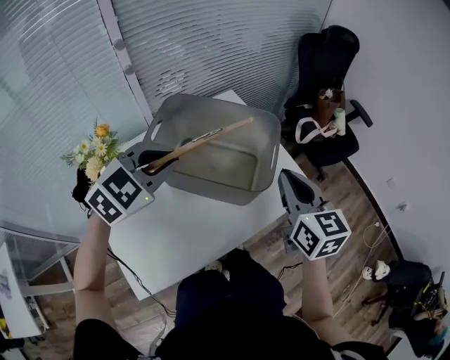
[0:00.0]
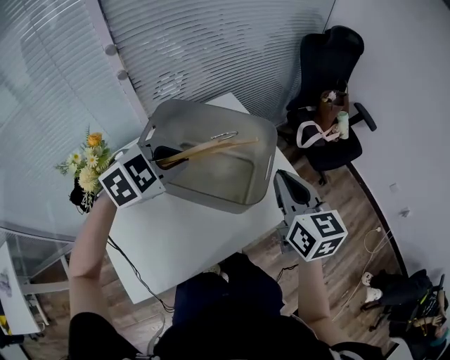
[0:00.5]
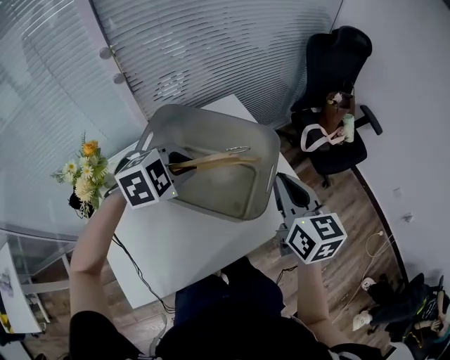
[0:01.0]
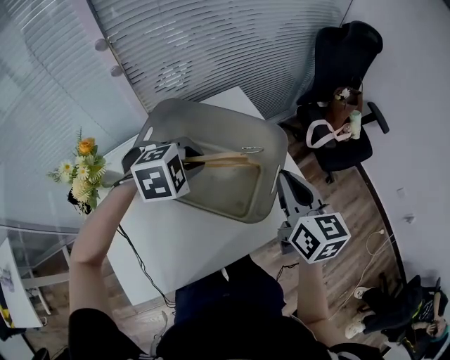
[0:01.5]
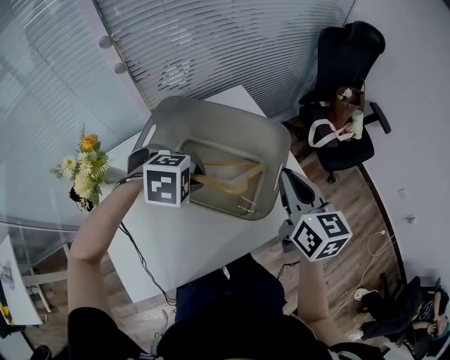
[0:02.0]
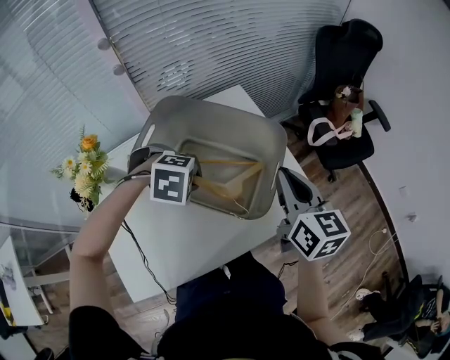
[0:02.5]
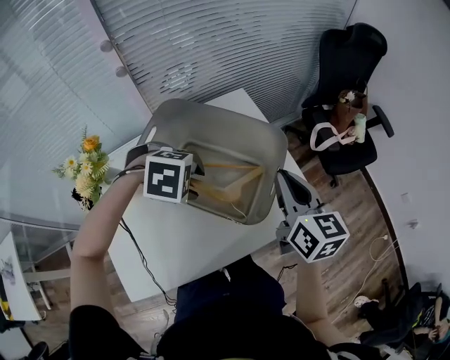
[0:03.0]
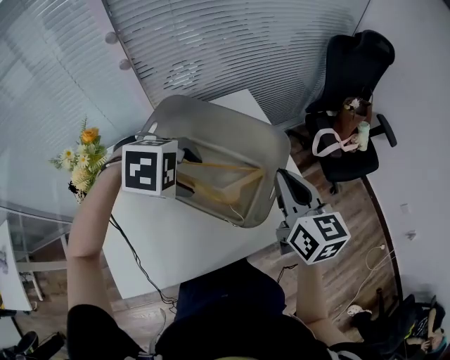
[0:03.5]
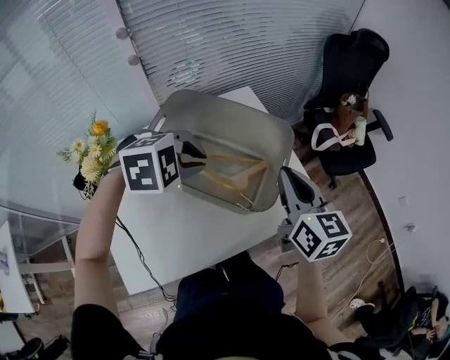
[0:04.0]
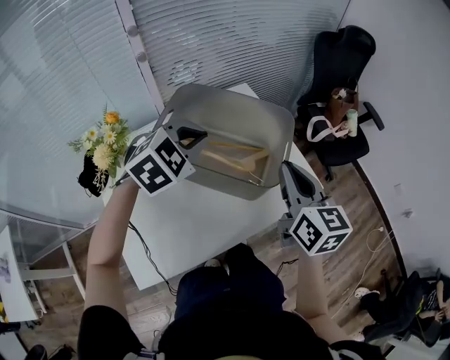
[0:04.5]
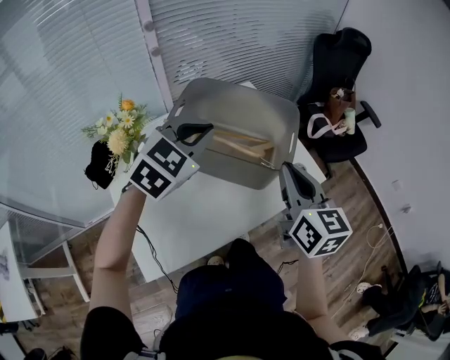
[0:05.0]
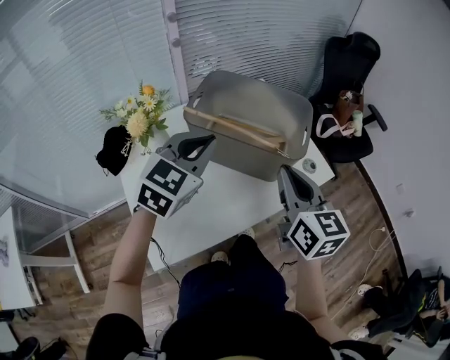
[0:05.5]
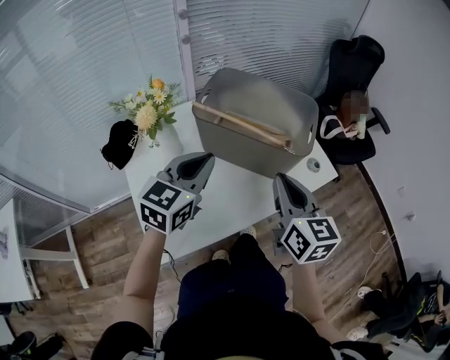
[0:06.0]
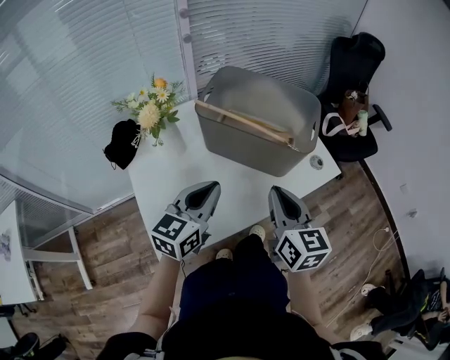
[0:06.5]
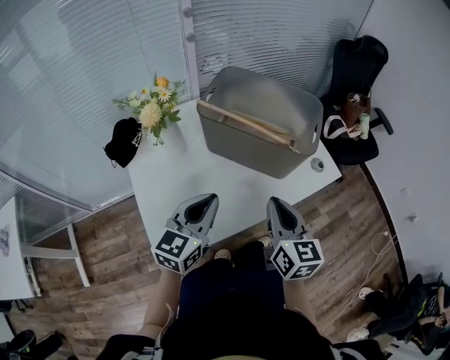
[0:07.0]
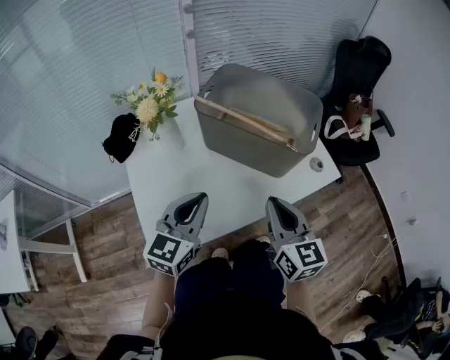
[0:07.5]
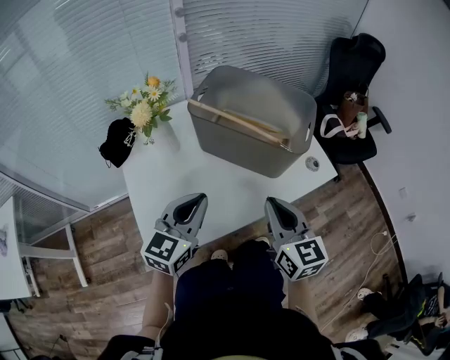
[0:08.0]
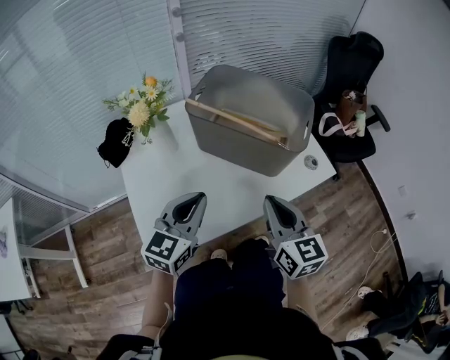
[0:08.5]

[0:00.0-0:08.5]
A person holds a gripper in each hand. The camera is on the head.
0:00.0 to 0:02.0: The left gripper heads downward, covering approximately 15 cm, and tips its fingers downward by approximately 40 degrees. Meanwhile the right gripper shifts approximately 10 cm forward.
0:02.0 to 0:04.0: The left gripper goes about 5 cm upward, and opens, then closes once more.
0:04.0 to 0:06.5: The right gripper goes approximately 25 cm backward and to the left. Meanwhile the left gripper heads backward, covering approximately 20 cm, and tips its fingers upward by approximately 50 degrees.
0:06.5 to 0:08.5: The grippers make only small movements.

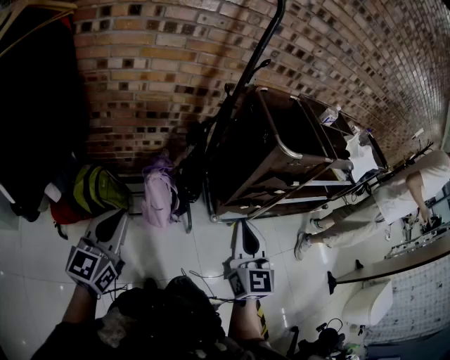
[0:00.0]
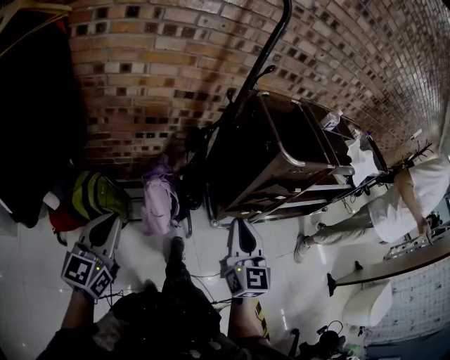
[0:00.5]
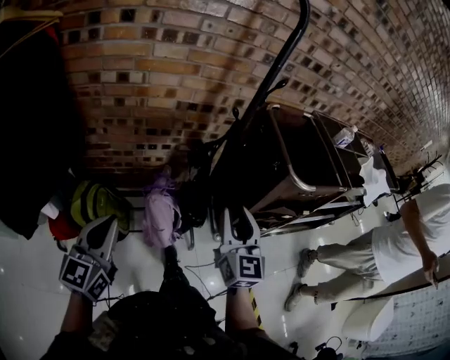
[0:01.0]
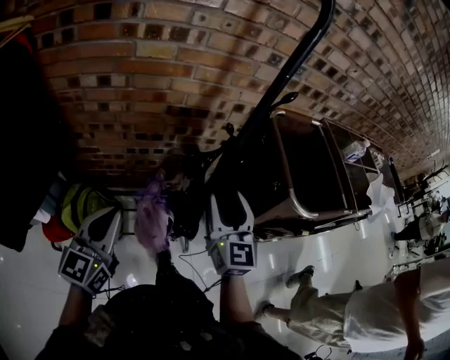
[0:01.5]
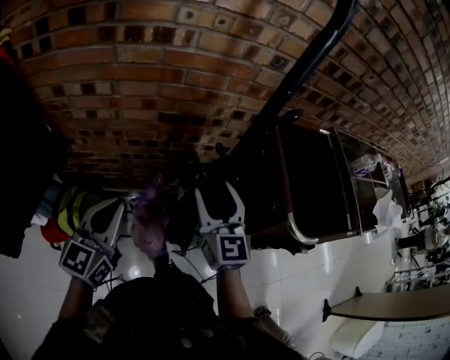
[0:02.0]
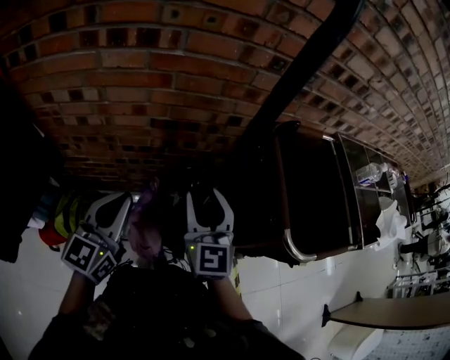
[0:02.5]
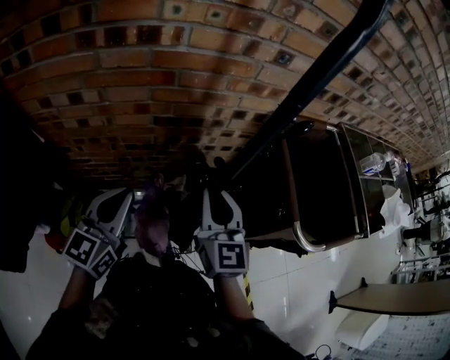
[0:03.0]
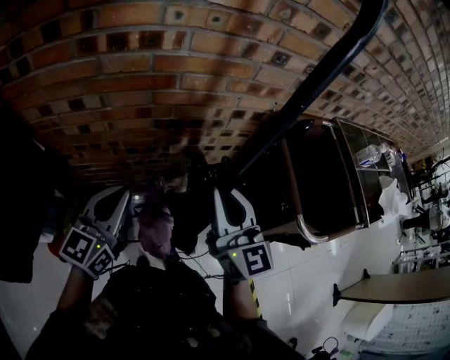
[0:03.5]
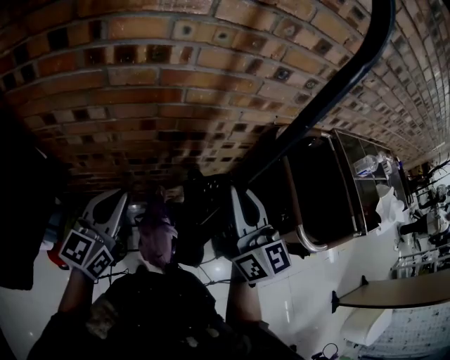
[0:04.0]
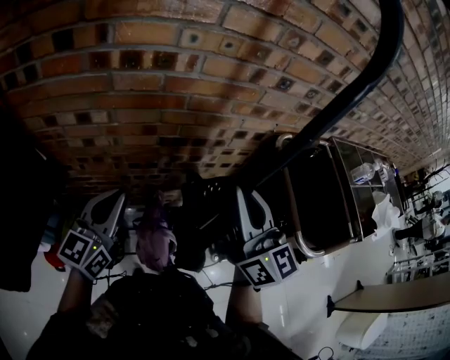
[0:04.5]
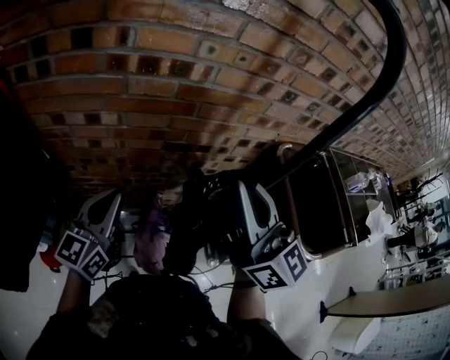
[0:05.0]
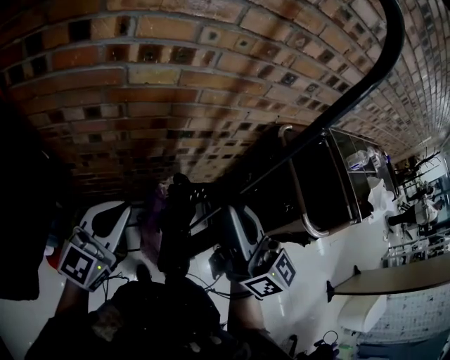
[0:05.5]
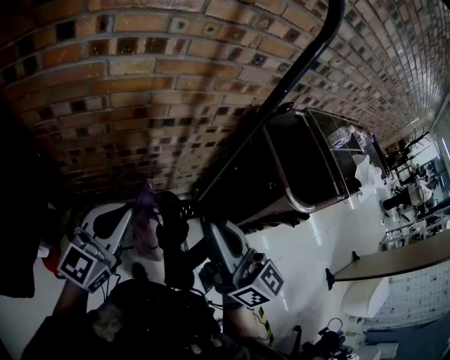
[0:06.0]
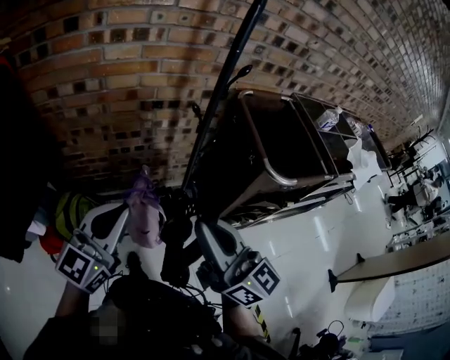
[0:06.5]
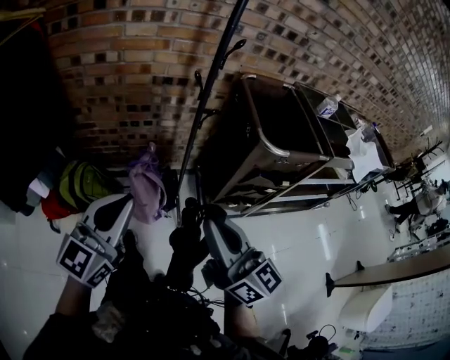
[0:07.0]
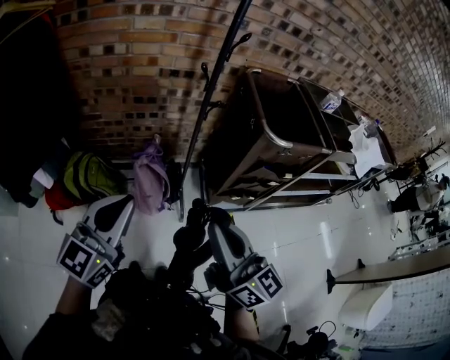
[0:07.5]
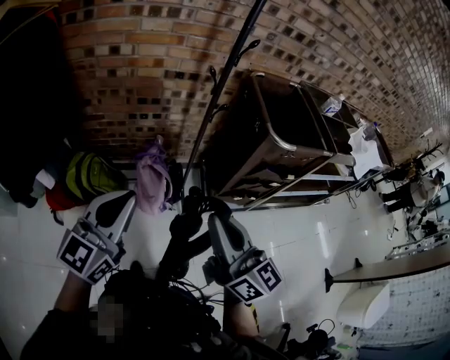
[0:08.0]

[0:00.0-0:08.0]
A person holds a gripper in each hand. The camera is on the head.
0:00.0 to 0:02.0: Both grippers move forward, some 40 cm. The right gripper opens its fingers.
0:02.0 to 0:04.0: The left gripper travels forward by about 10 cm; the right gripper travels upward by approximately 10 cm, swivels about 20 degrees, and closes.
0:04.0 to 0:06.0: The right gripper moves backward, some 15 cm, while the left gripper is displaced backward by roughly 10 cm.
0:06.0 to 0:08.0: The grippers both shift backward by about 30 cm.

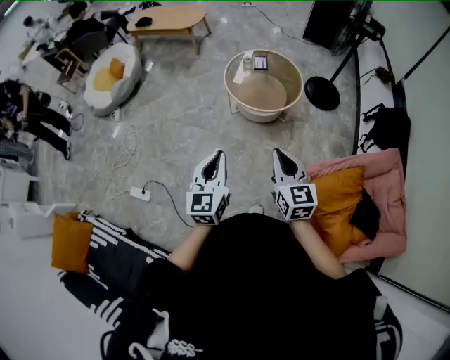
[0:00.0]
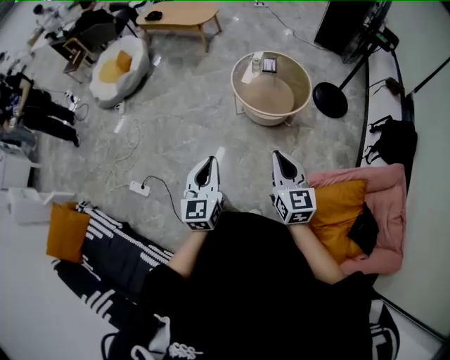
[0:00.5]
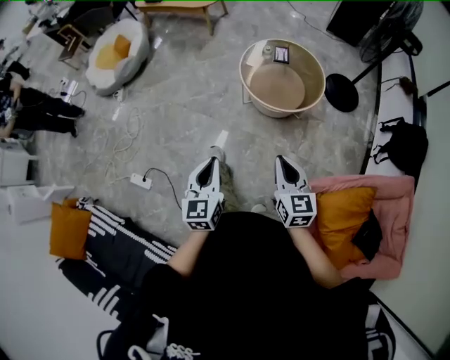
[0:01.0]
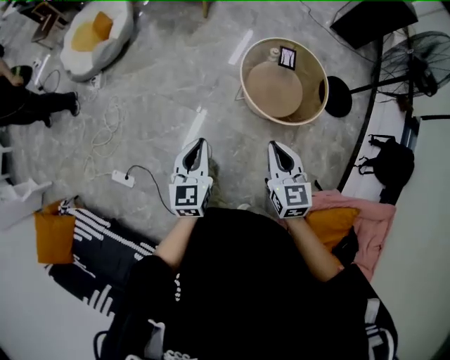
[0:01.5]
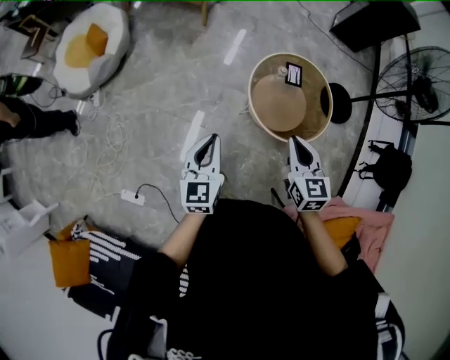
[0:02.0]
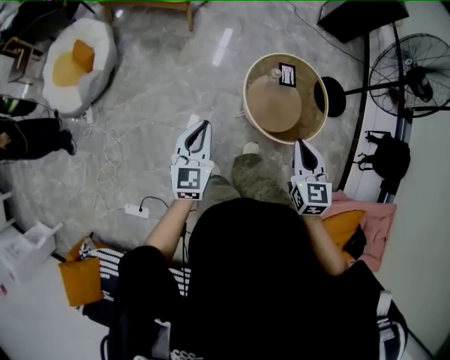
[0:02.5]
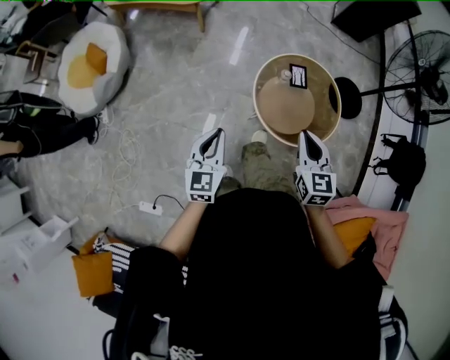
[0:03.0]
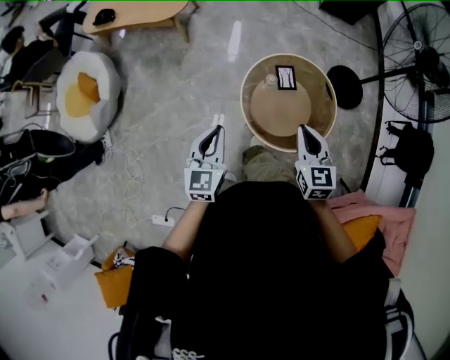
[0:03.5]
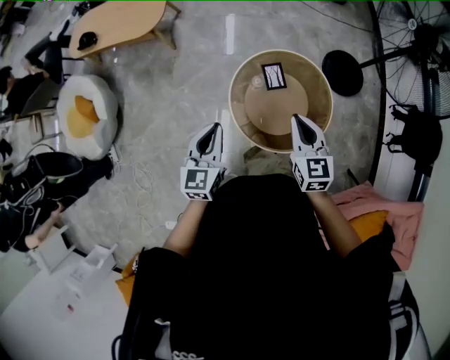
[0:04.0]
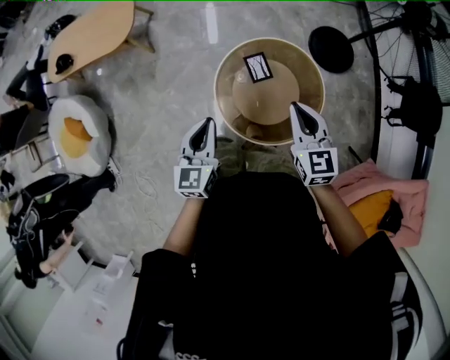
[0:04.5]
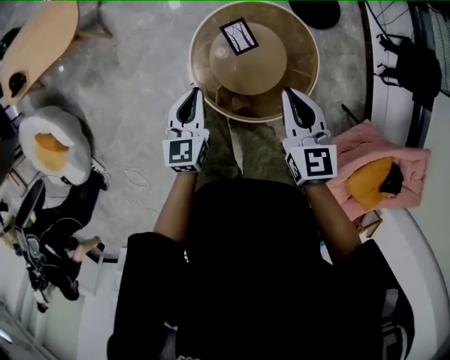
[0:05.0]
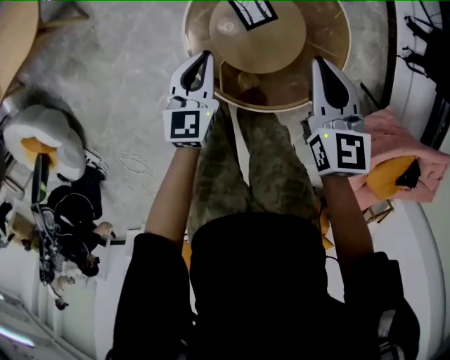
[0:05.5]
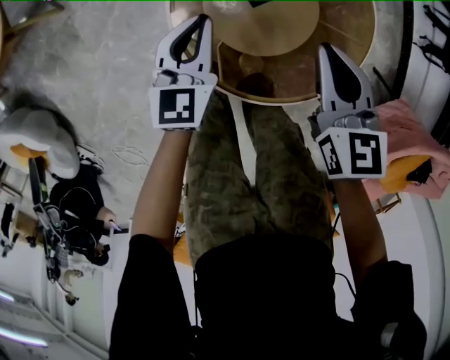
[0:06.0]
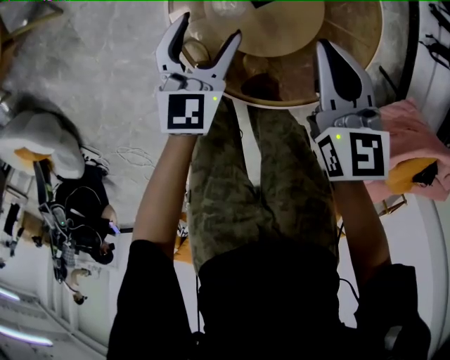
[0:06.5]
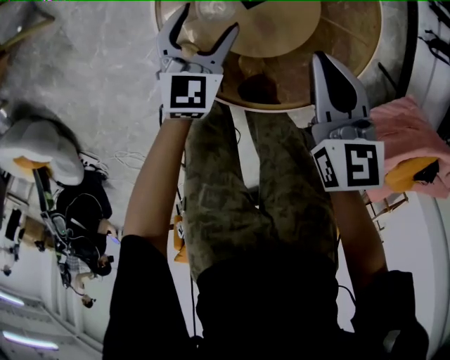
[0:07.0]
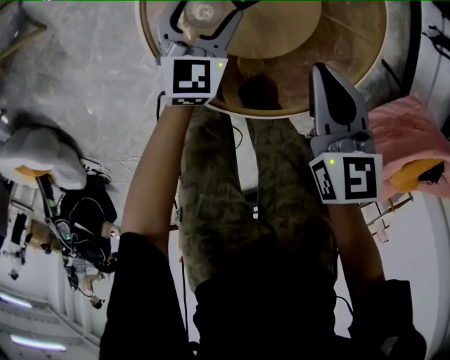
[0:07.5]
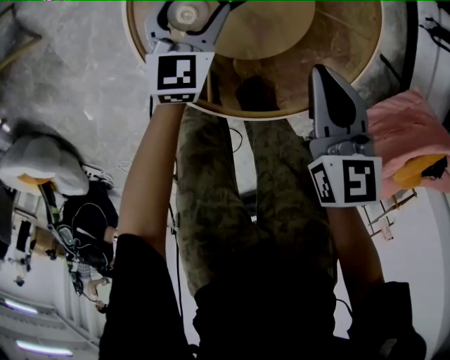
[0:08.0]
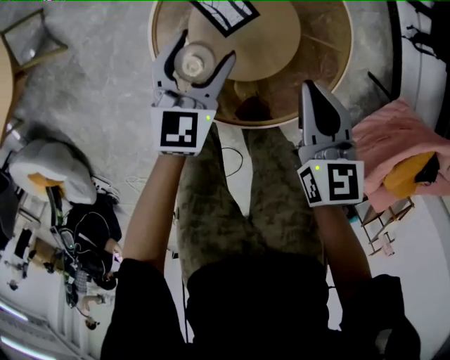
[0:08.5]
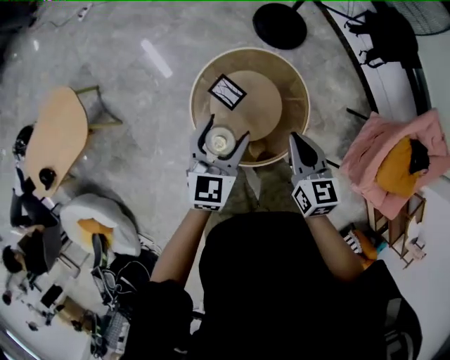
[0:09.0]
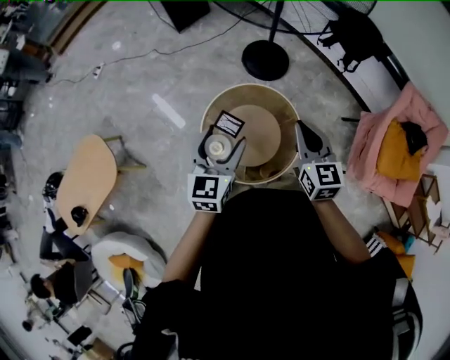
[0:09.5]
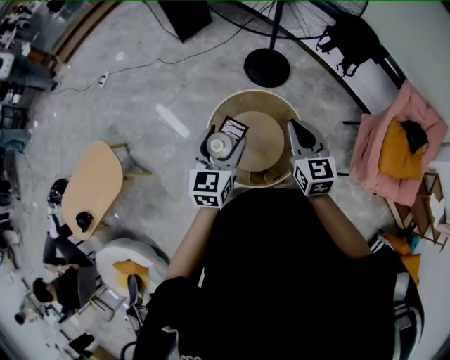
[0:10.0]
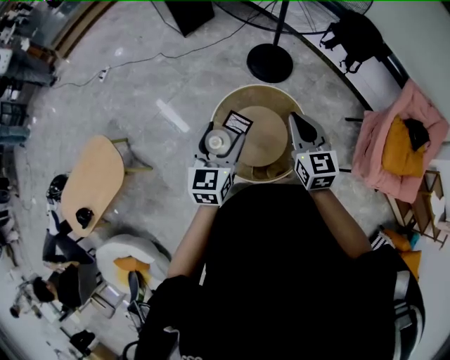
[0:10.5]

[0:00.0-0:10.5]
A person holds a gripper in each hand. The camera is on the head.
0:00.0 to 0:02.0: The pair of grippers is taken forward, some 60 cm.
0:02.0 to 0:04.0: Both grippers move forward and to the right, some 35 cm. The left gripper swivels some 20 degrees.
0:04.0 to 0:06.5: The right gripper shifts some 40 cm downward, and swivels about 30 degrees. The left gripper travels downward and forward by some 50 cm, turns by some 30 degrees, and opens up.
0:06.5 to 0:08.5: The left gripper travels upward and to the right by approximately 10 cm; the right gripper goes roughly 5 cm to the right.
0:08.5 to 0:10.5: Both grippers move upward, roughly 50 cm. The right gripper turns by roughly 30 degrees.
